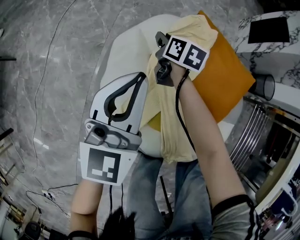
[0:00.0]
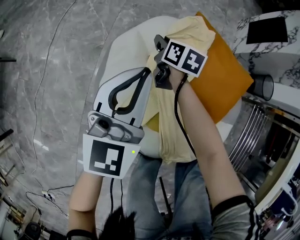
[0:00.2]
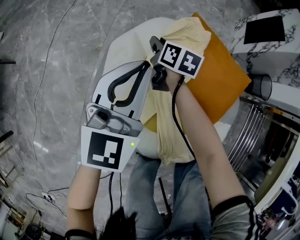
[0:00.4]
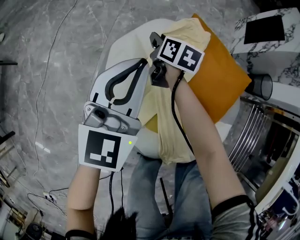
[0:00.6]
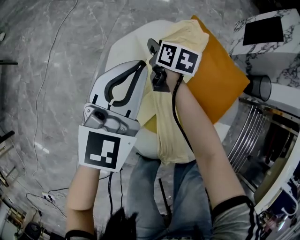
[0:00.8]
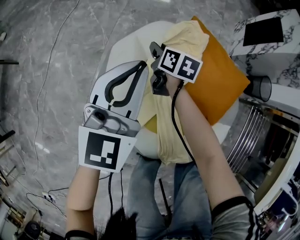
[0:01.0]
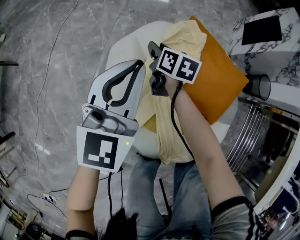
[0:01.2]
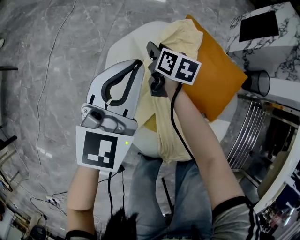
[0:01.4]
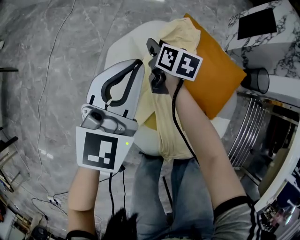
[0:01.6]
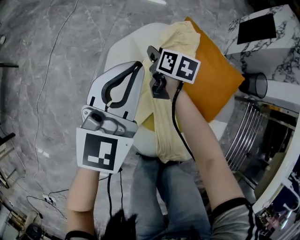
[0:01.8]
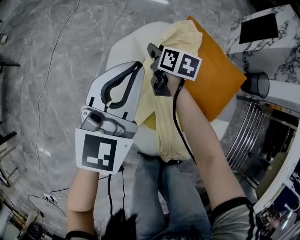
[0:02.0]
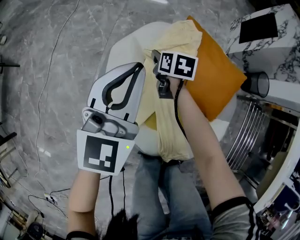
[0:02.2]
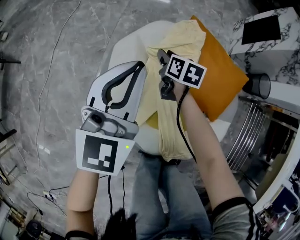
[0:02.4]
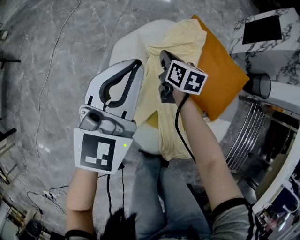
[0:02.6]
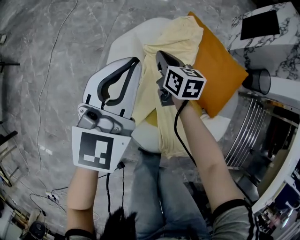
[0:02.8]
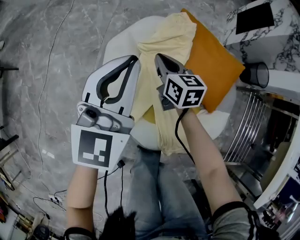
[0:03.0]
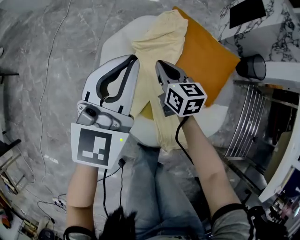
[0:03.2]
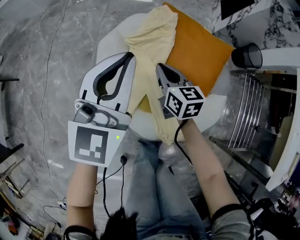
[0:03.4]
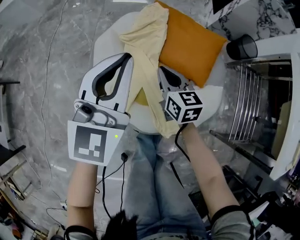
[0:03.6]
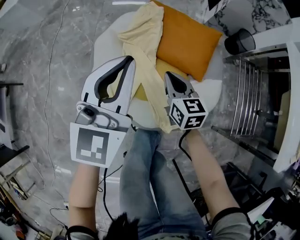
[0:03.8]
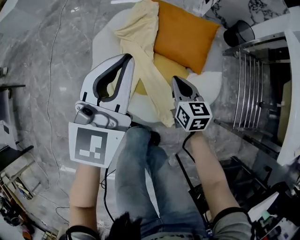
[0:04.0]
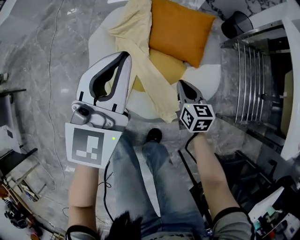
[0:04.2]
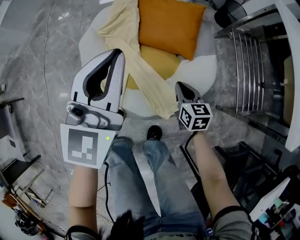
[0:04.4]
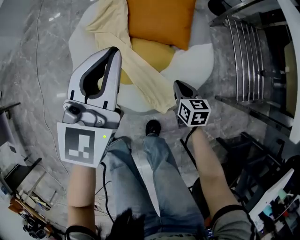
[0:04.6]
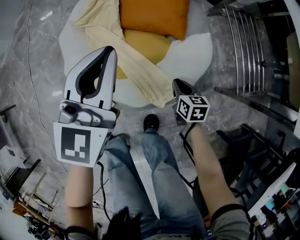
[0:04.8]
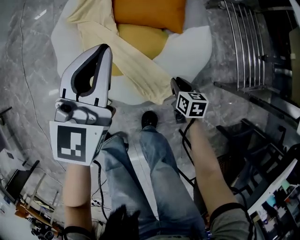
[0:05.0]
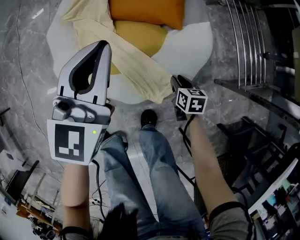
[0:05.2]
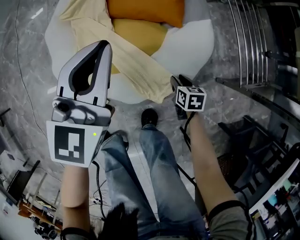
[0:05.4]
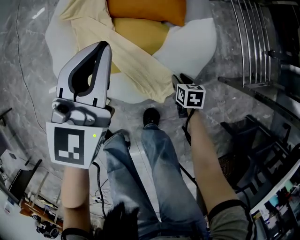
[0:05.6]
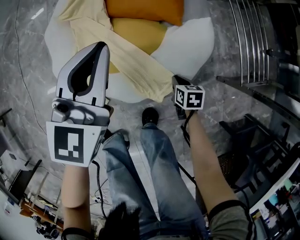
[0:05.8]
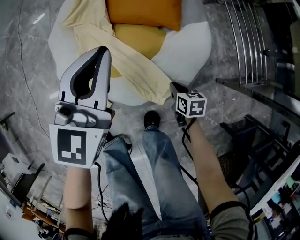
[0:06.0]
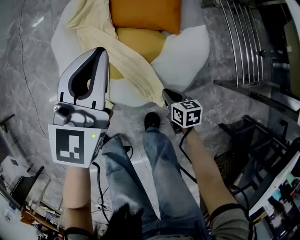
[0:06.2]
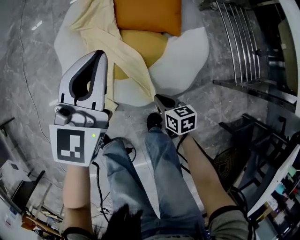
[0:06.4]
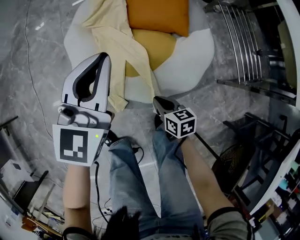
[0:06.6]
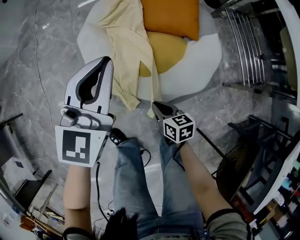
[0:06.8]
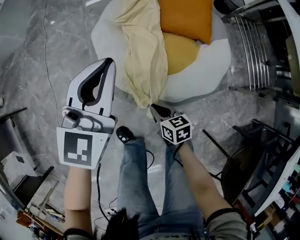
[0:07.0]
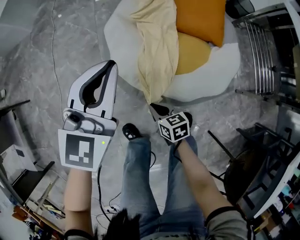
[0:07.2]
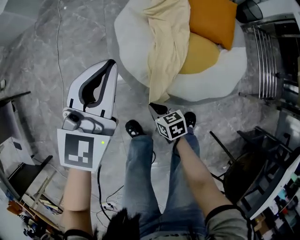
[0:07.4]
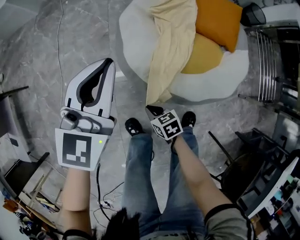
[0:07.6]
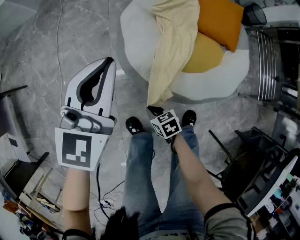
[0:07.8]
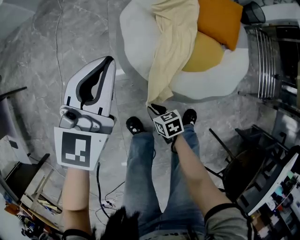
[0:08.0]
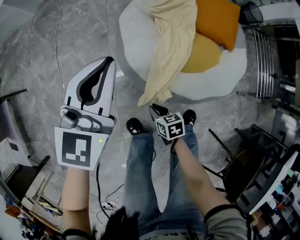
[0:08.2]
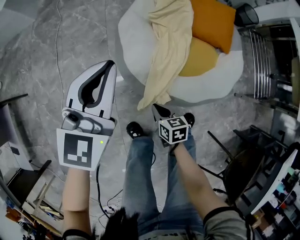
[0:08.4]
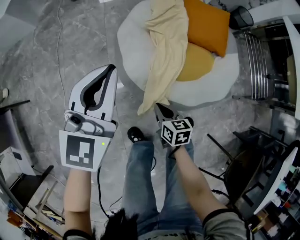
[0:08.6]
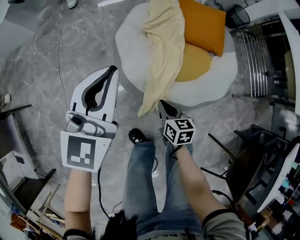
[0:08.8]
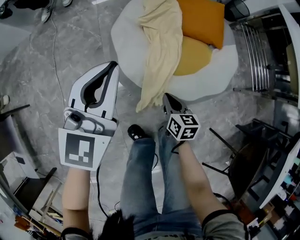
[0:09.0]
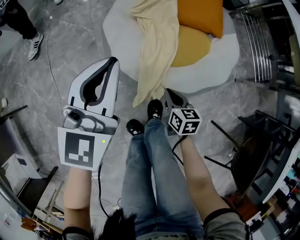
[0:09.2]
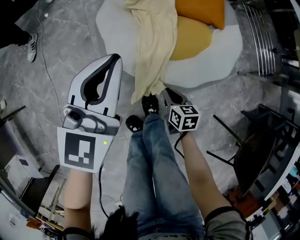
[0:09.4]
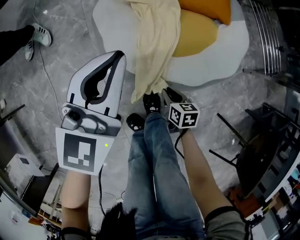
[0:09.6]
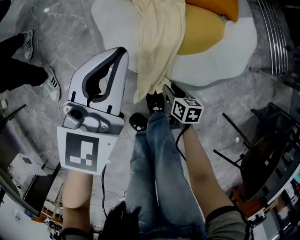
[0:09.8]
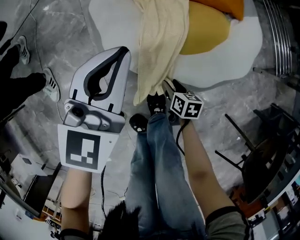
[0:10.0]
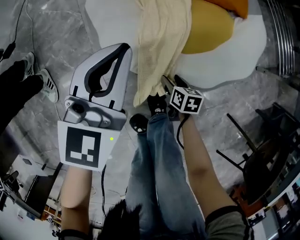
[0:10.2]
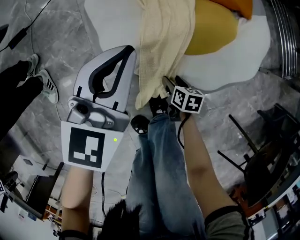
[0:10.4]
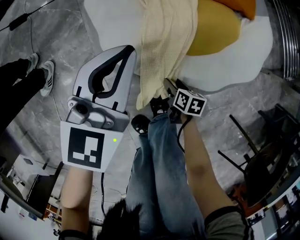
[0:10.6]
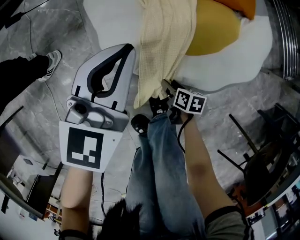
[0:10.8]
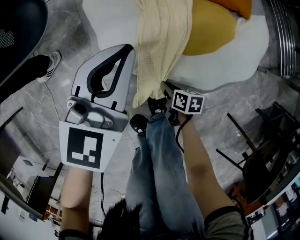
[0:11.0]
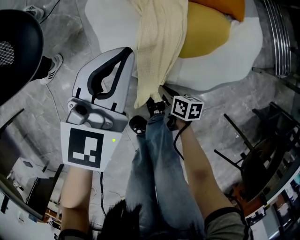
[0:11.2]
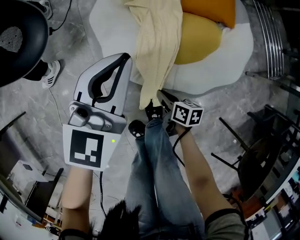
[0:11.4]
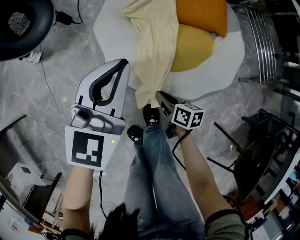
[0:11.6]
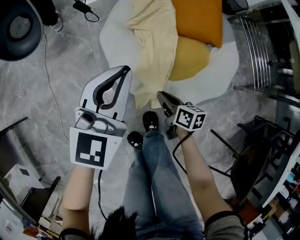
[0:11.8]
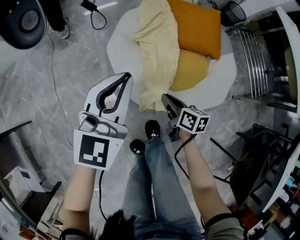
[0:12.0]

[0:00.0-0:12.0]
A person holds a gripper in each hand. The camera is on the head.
0:00.0 to 0:01.6: The left gripper changes place by some 5 cm. Meanwhile the right gripper moves upward, about 5 cm.
0:01.6 to 0:03.0: The right gripper travels backward by roughly 10 cm, and closes up.
0:03.0 to 0:04.4: The right gripper shifts approximately 40 cm backward and to the right, and rotates approximately 20 degrees. The left gripper goes some 25 cm to the right and backward.
0:04.4 to 0:06.0: The left gripper goes roughly 10 cm downward and to the right; the right gripper travels downward and backward by about 20 cm, rotates roughly 30 degrees, and opens and closes again.
0:06.0 to 0:07.6: The two grippers travel together, to the left, roughly 50 cm. The right gripper rotates about 30 degrees.
0:07.6 to 0:09.0: The right gripper changes place by about 15 cm, and changes its angle by roughly 40 degrees.
0:09.0 to 0:10.4: The right gripper heads downward, covering approximately 30 cm, turns by some 30 degrees, and opens, while the left gripper goes some 25 cm downward and to the right.
0:10.4 to 0:12.0: The grippers both shift upward by roughly 25 cm. The right gripper turns by roughly 20 degrees, and closes its fingers.

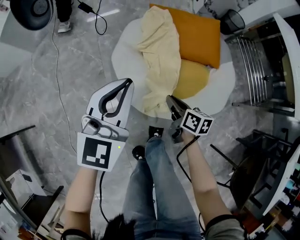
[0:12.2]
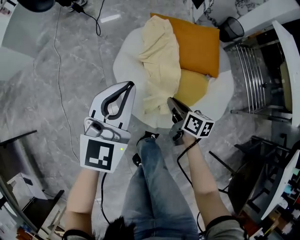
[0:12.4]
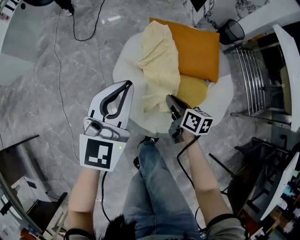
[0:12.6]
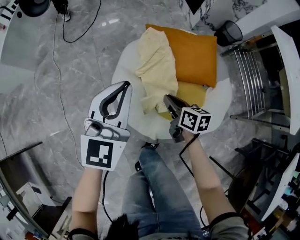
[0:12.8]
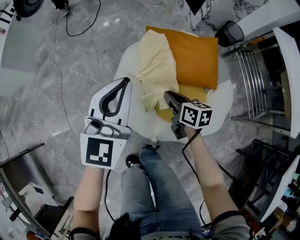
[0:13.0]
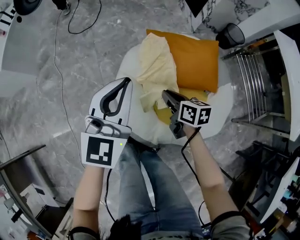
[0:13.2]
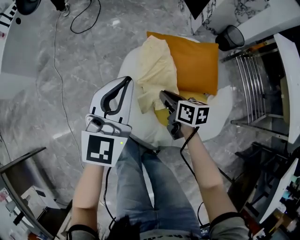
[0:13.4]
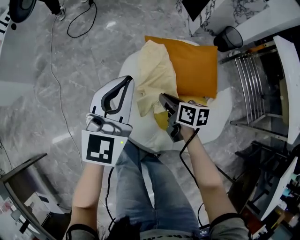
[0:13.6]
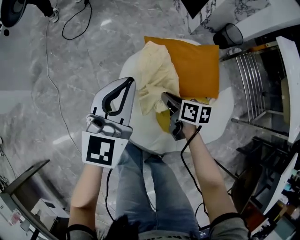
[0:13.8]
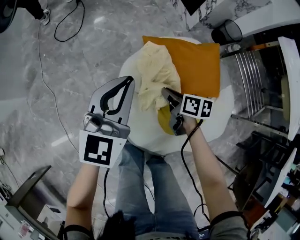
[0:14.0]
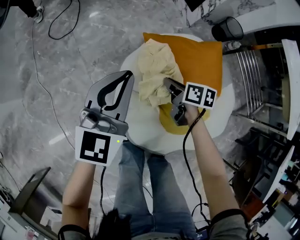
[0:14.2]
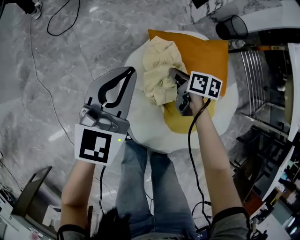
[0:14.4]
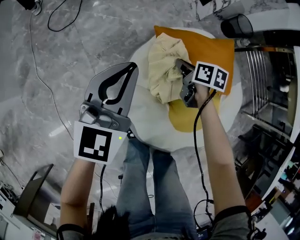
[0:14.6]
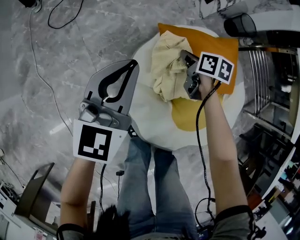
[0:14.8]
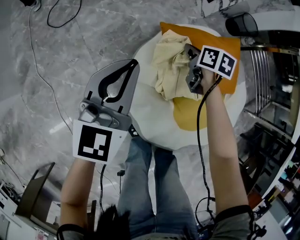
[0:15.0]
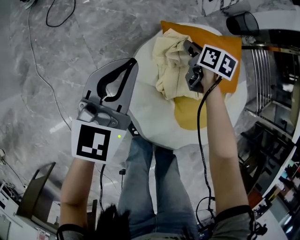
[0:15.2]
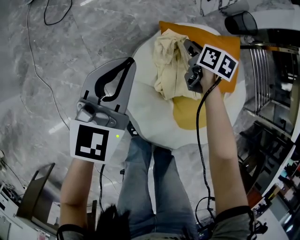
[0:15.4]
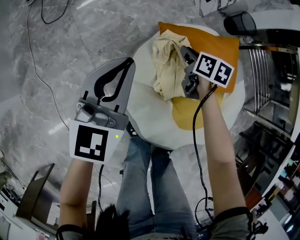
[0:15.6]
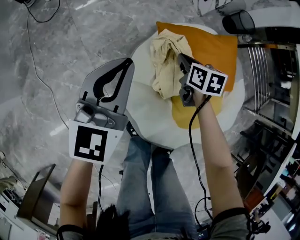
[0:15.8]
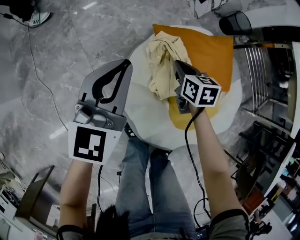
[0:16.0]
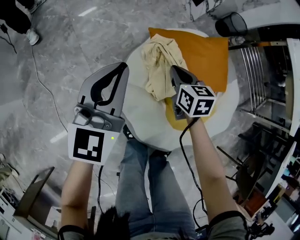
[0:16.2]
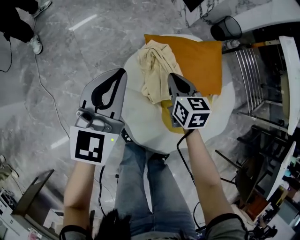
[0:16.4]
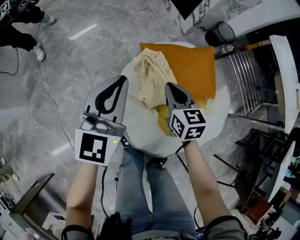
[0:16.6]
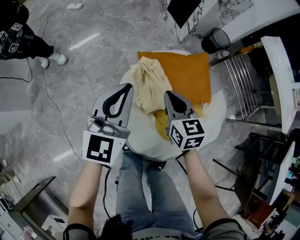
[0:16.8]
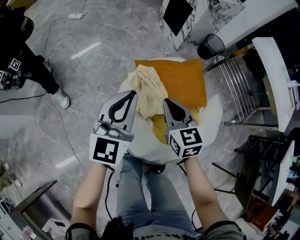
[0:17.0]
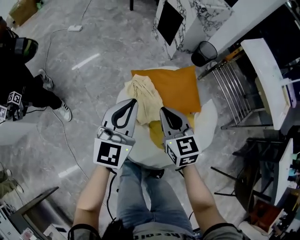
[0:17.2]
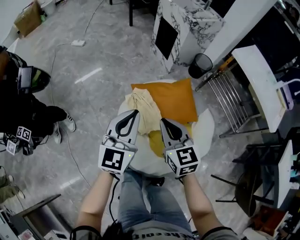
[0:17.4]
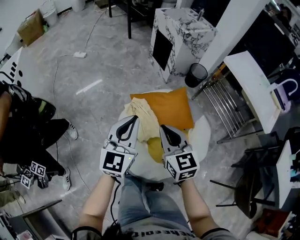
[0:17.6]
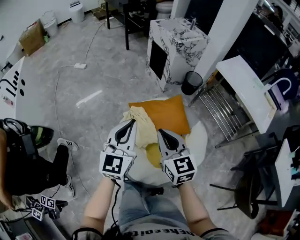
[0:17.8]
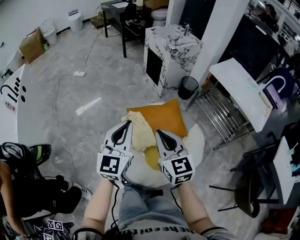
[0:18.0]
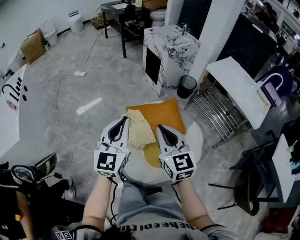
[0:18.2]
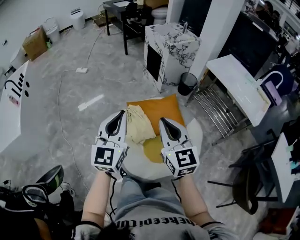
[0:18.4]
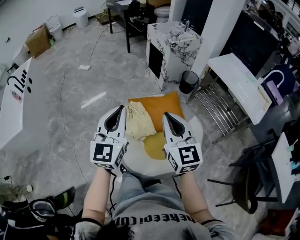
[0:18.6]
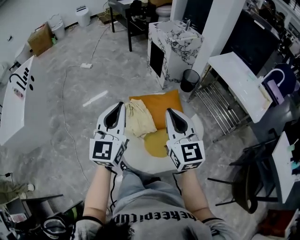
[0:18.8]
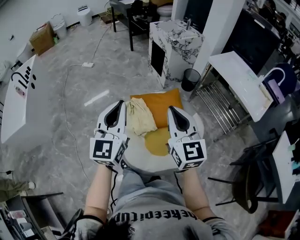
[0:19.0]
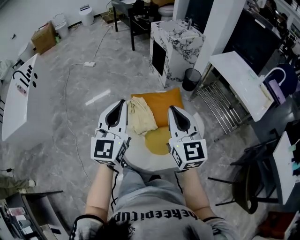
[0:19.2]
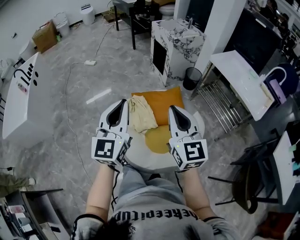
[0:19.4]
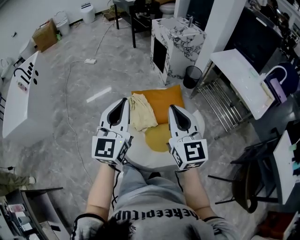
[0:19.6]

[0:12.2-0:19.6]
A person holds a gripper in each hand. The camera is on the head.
0:12.2 to 0:13.6: Both grippers move forward, about 25 cm.
0:13.6 to 0:15.2: The right gripper moves forward, about 30 cm, rotates roughly 30 degrees, and opens its fingers. The left gripper heads forward, downward and to the left, covering roughly 25 cm.
0:15.2 to 0:16.6: The left gripper is displaced upward, to the right and backward by approximately 15 cm. Meanwhile the right gripper travels upward and backward by some 25 cm, swivels roughly 30 degrees, and closes its fingers.
0:16.6 to 0:18.2: The left gripper is displaced upward, backward and to the right by roughly 35 cm. The right gripper shifts about 50 cm upward and backward, and turns by about 30 degrees.
0:18.2 to 0:19.6: The right gripper shifts roughly 15 cm backward, to the right and upward; the left gripper shifts some 10 cm backward.

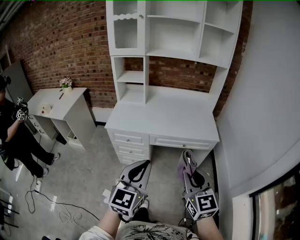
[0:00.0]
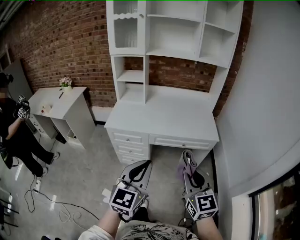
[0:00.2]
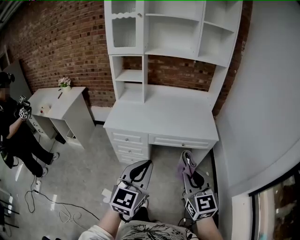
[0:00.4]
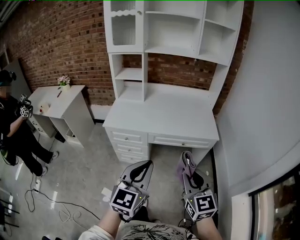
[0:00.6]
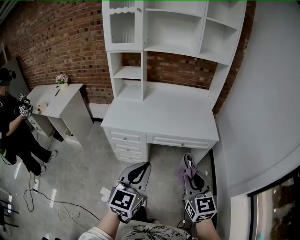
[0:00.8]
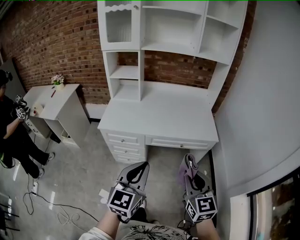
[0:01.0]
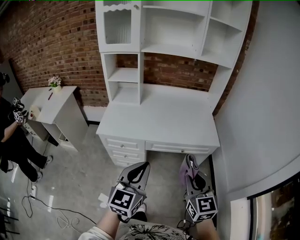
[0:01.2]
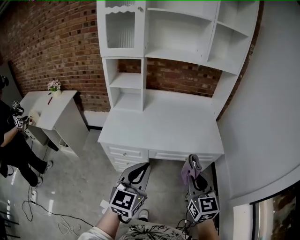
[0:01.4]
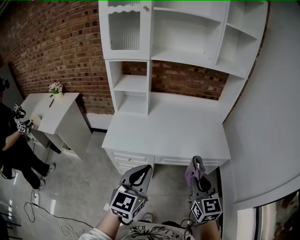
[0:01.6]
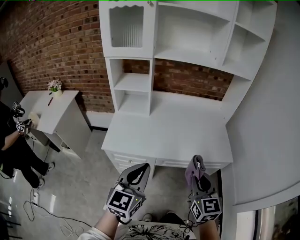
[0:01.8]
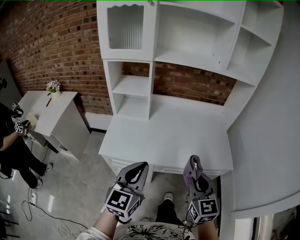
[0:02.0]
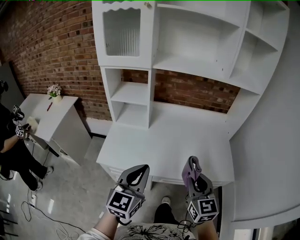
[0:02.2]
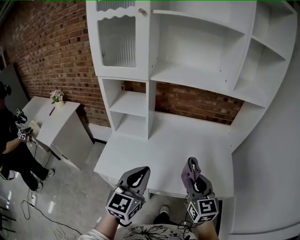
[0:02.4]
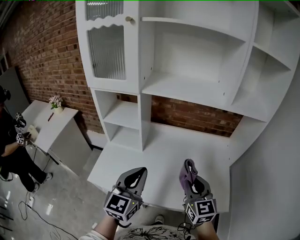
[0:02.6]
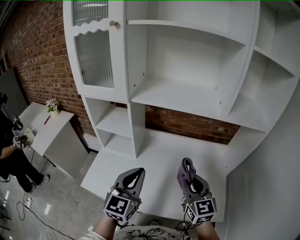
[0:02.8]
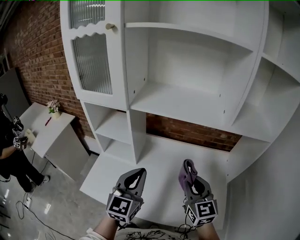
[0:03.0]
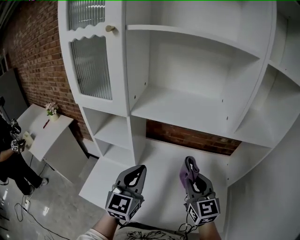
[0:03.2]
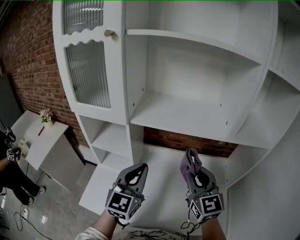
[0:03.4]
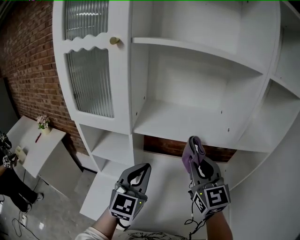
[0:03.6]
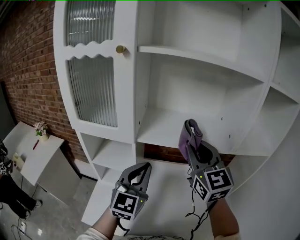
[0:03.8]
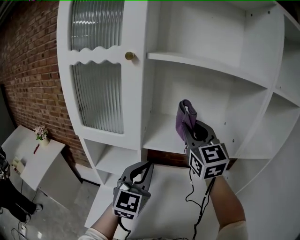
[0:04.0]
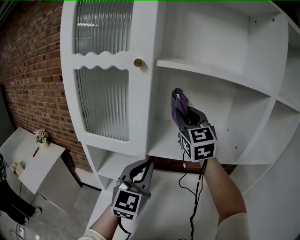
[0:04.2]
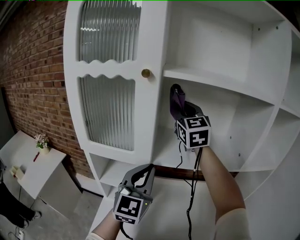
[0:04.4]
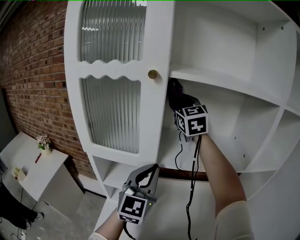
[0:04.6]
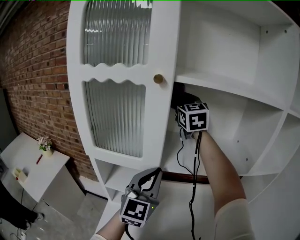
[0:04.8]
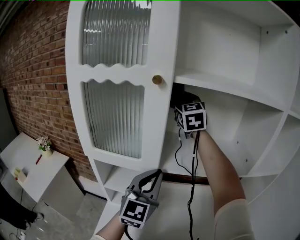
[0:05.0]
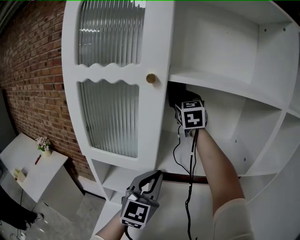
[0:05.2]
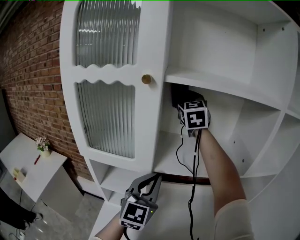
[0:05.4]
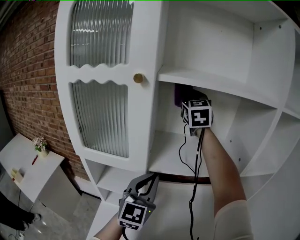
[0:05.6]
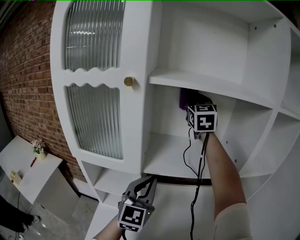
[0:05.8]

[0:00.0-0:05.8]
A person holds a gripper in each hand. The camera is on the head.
0:00.0 to 0:01.4: The two grippers go about 15 cm forward.
0:01.4 to 0:02.8: Both grippers are carried forward, about 40 cm.
0:02.8 to 0:04.4: The left gripper shifts approximately 25 cm forward, upward and to the left, while the right gripper shifts some 50 cm forward, upward and to the left, and rotates approximately 20 degrees.
0:04.4 to 0:05.8: The right gripper moves to the right and forward, about 10 cm. The left gripper changes place by roughly 5 cm.
